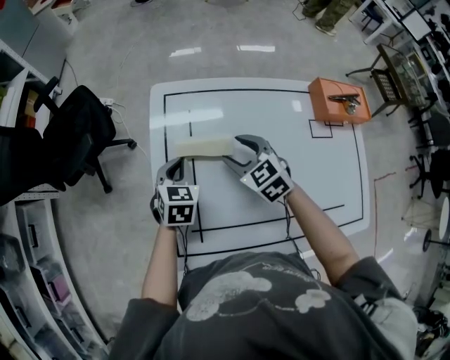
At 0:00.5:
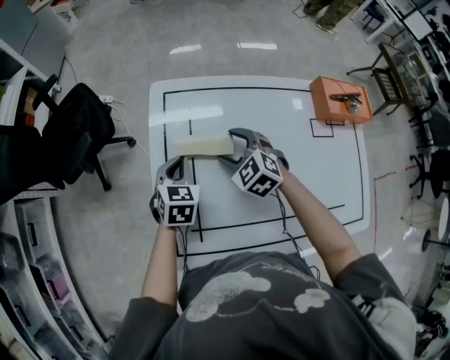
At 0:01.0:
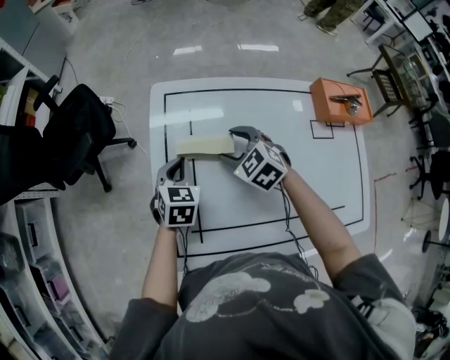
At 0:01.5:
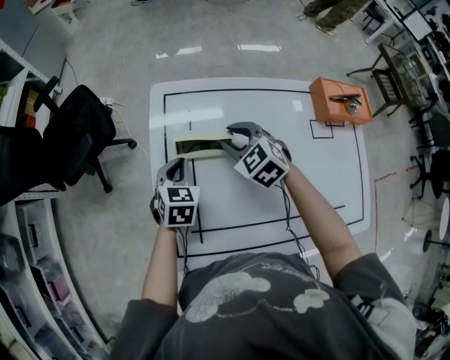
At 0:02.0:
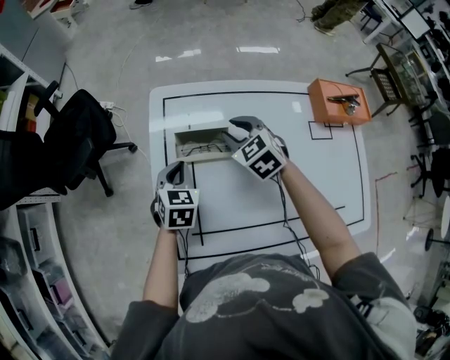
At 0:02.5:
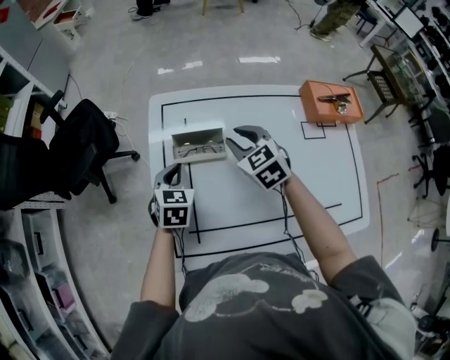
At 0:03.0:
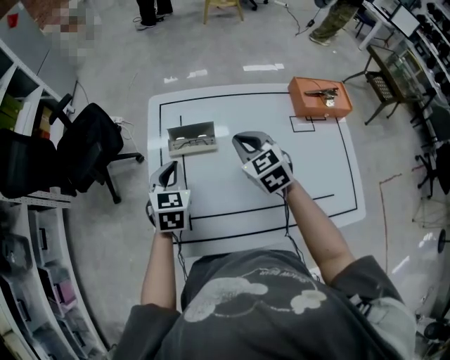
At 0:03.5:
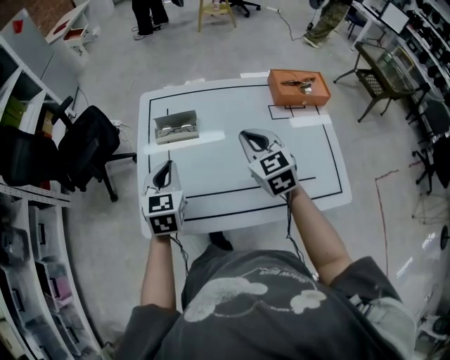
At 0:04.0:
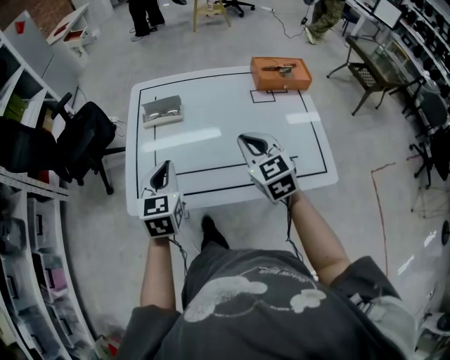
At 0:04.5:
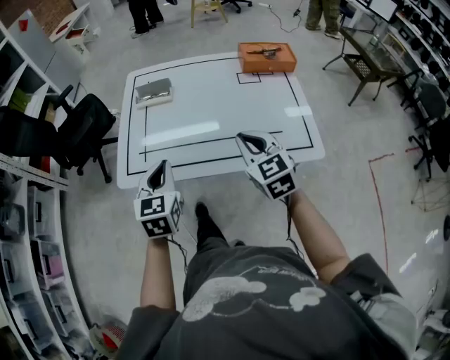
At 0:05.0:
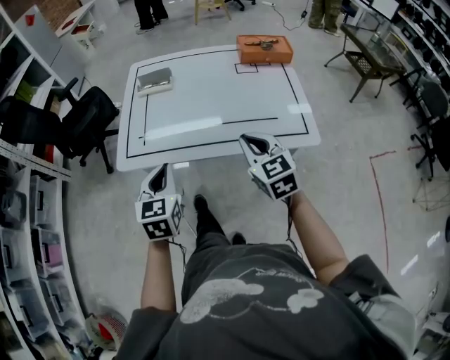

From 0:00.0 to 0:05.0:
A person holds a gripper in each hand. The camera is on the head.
From 0:00.0 to 0:02.5: The right gripper changes place by roughly 5 cm, and closes.
From 0:02.5 to 0:05.0: Both grippers are carried backward, roughly 50 cm. The right gripper closes its fingers.

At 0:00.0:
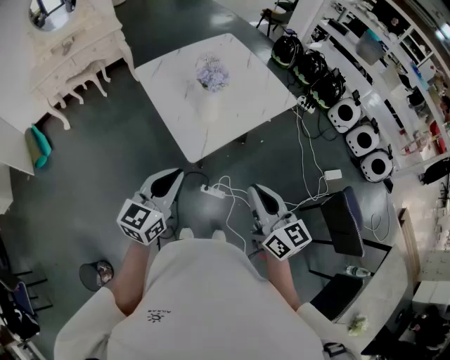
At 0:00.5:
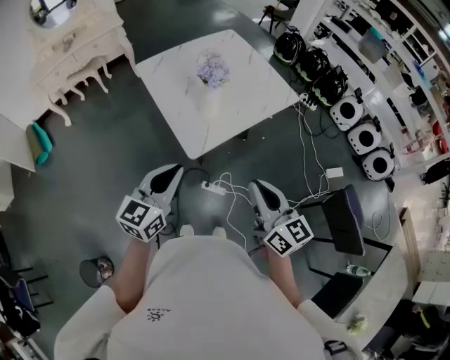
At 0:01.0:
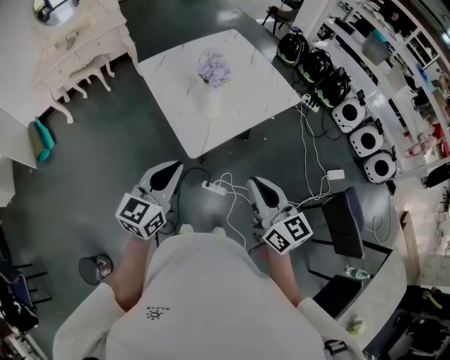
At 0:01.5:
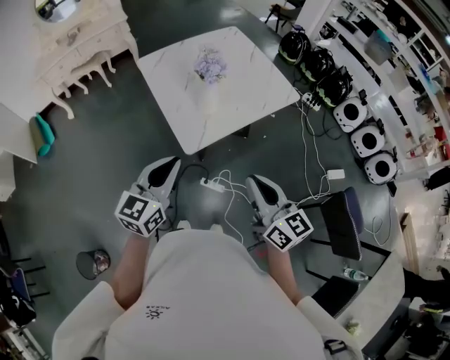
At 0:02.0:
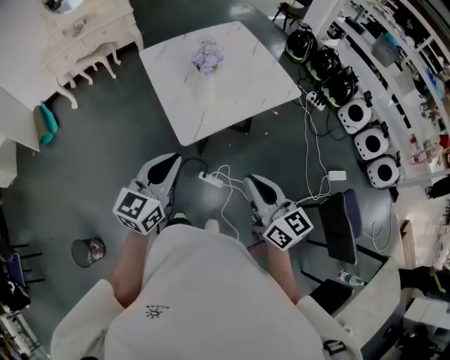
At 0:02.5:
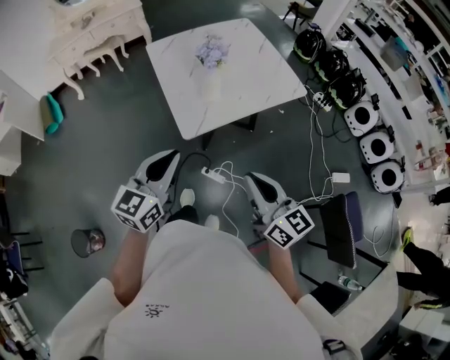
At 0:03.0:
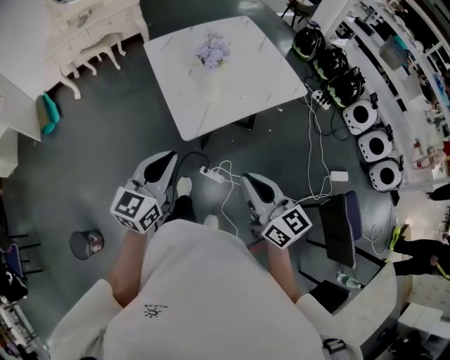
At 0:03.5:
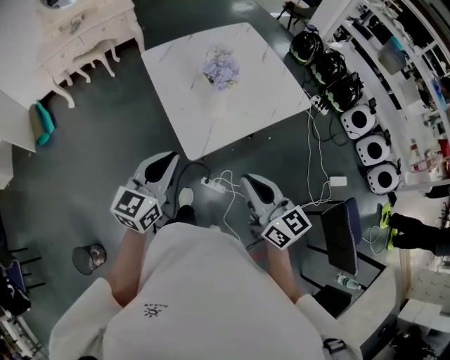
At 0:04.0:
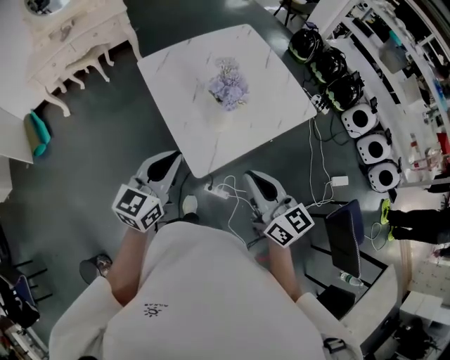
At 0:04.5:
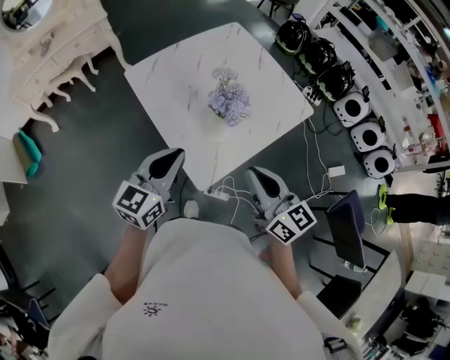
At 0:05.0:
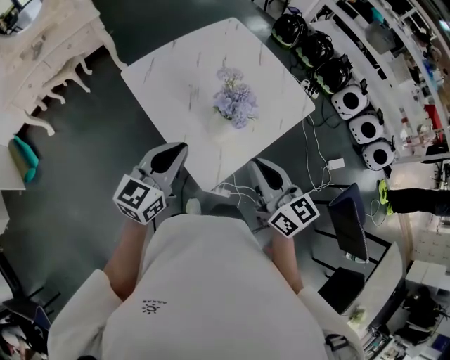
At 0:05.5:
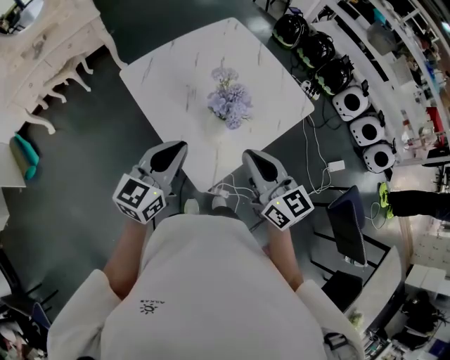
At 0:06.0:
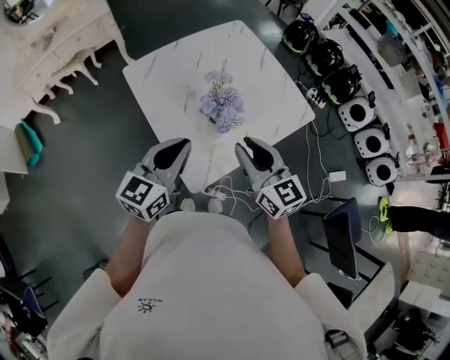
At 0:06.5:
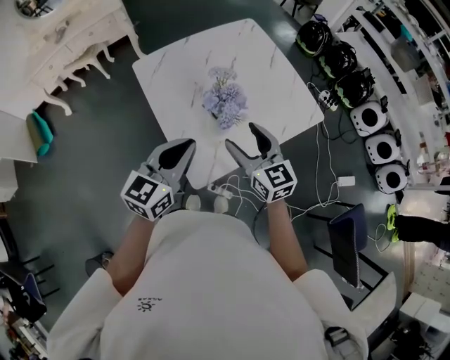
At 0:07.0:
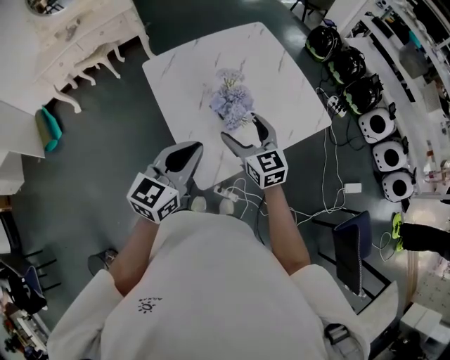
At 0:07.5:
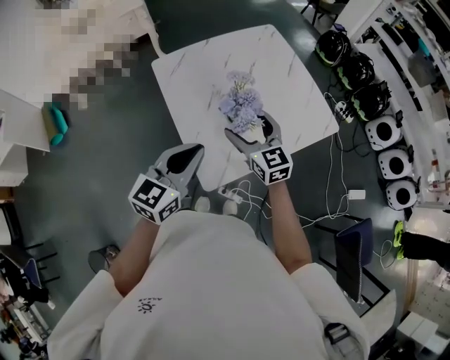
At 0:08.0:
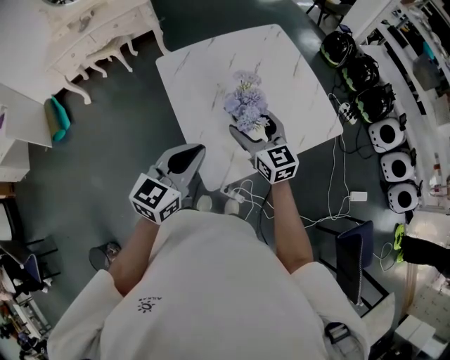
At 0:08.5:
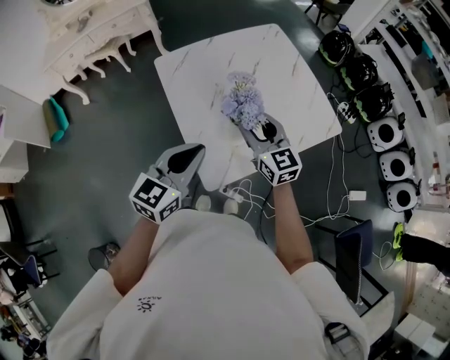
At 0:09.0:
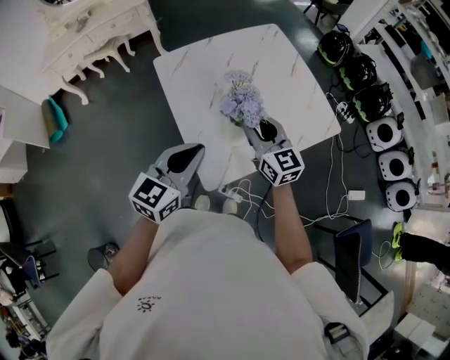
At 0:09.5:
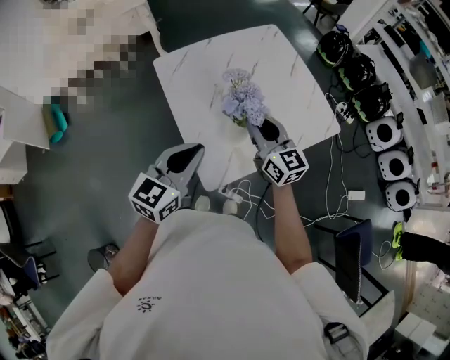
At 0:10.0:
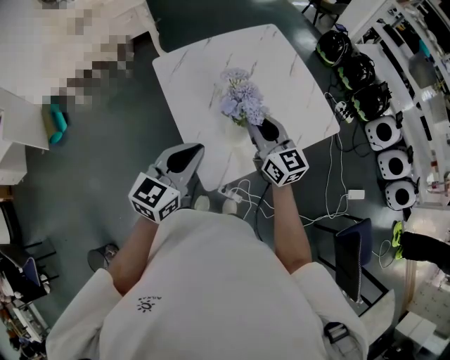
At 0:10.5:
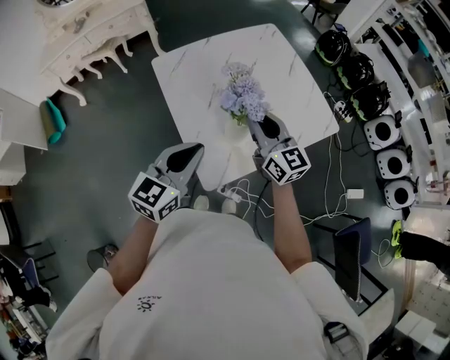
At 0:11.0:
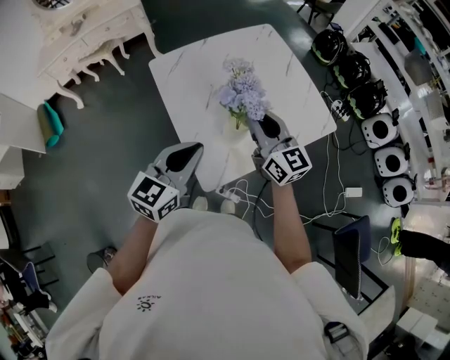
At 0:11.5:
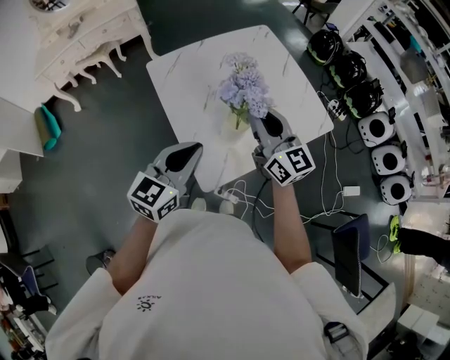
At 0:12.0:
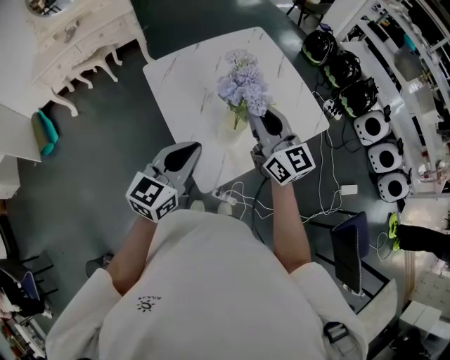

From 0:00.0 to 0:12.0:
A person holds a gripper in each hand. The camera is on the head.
From 0:00.0 to 0:02.0: Both grippers travel together to the right, roughly 5 cm.
From 0:02.0 to 0:04.0: The two grippers go some 20 cm forward and to the left.
From 0:04.0 to 0:06.0: The two grippers go about 15 cm forward.
From 0:06.0 to 0:08.0: The right gripper goes roughly 10 cm forward and downward, and opens its fingers.
From 0:08.0 to 0:10.0: The right gripper closes its fingers.
From 0:10.0 to 0:12.0: The right gripper heads upward, covering approximately 10 cm.

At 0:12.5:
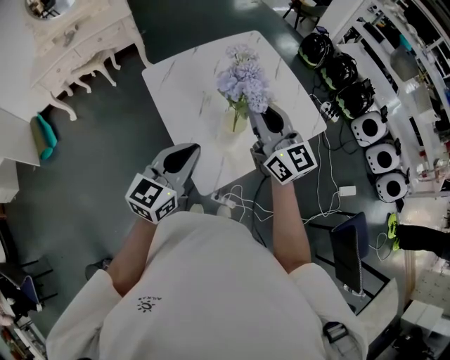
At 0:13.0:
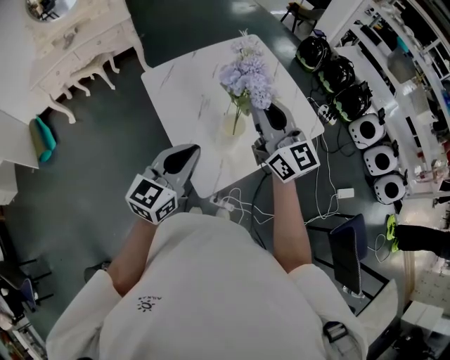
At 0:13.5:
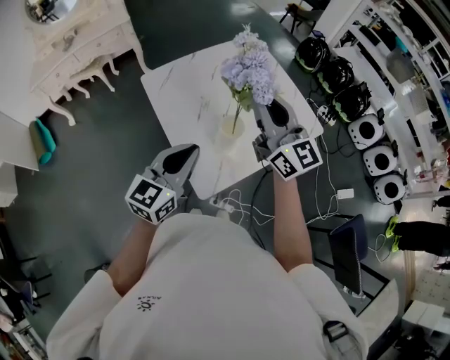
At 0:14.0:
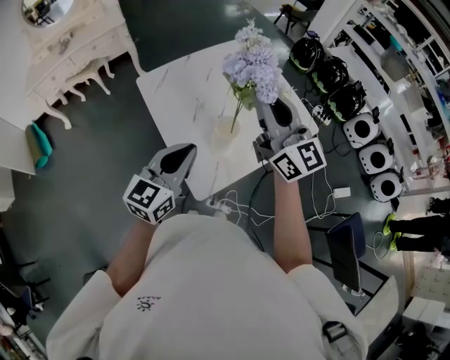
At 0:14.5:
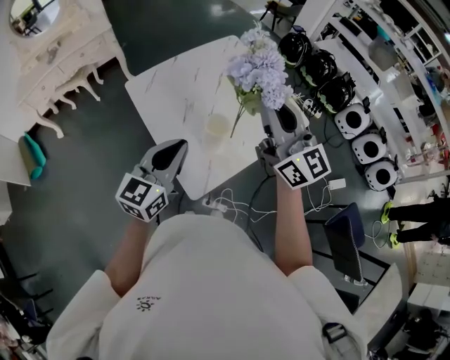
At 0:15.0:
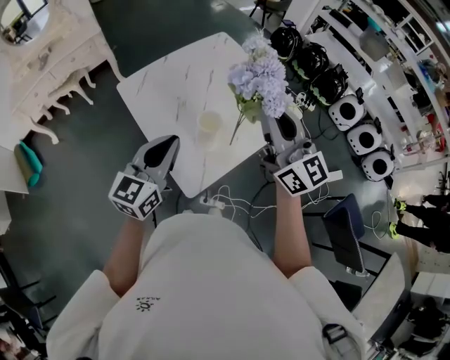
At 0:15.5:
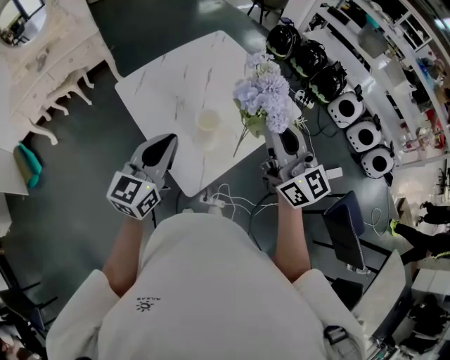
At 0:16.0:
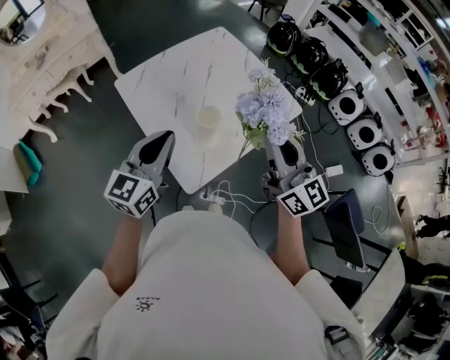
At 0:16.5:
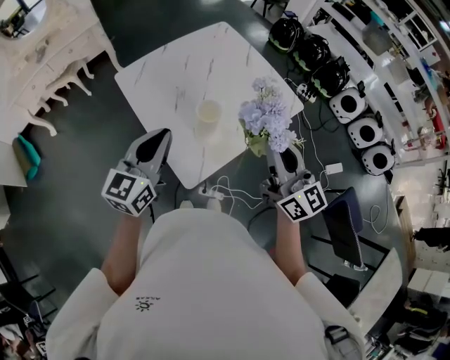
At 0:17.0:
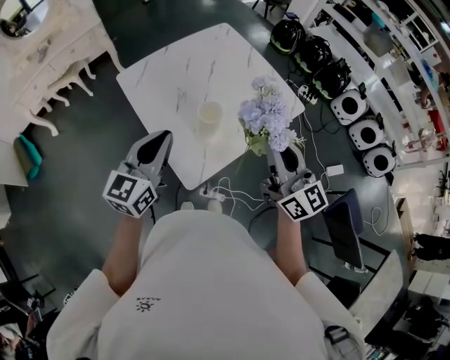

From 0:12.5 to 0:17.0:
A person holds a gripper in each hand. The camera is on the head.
From 0:12.5 to 0:14.5: The right gripper heads upward, covering approximately 10 cm.
From 0:14.5 to 0:17.0: The right gripper shifts some 15 cm downward, backward and to the right.

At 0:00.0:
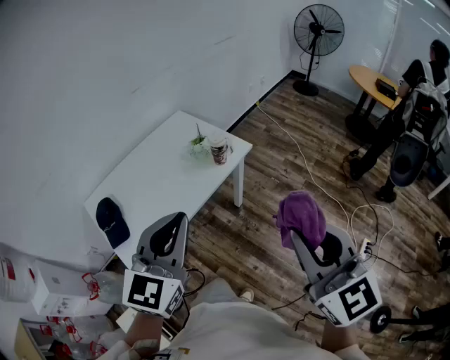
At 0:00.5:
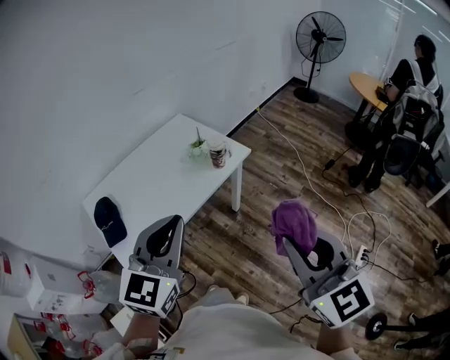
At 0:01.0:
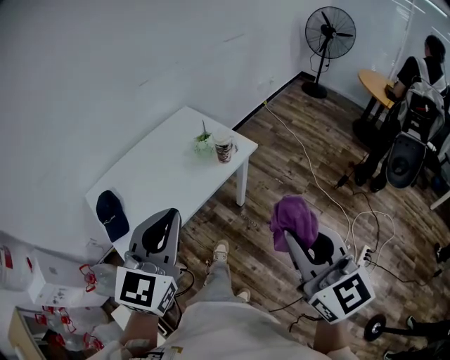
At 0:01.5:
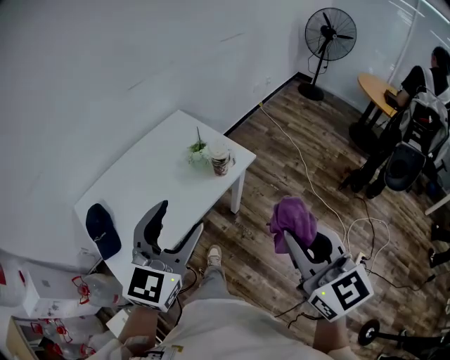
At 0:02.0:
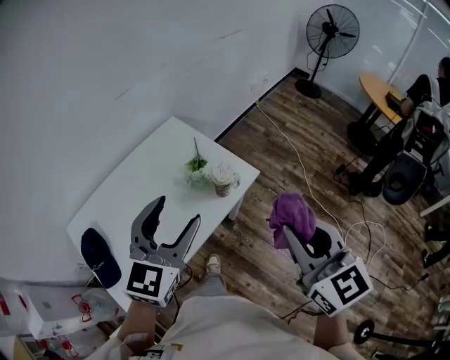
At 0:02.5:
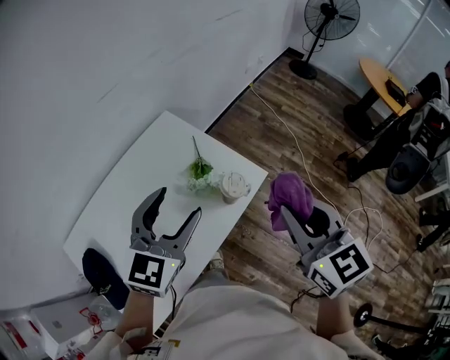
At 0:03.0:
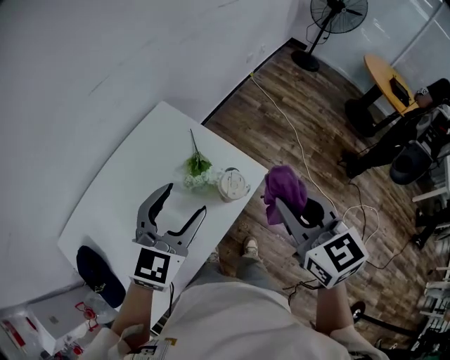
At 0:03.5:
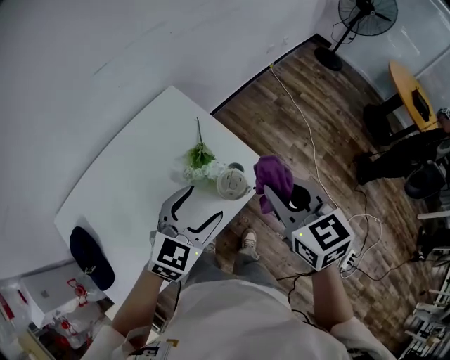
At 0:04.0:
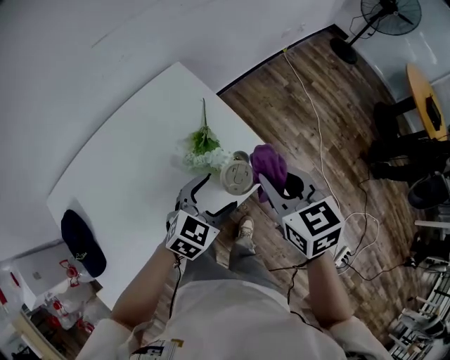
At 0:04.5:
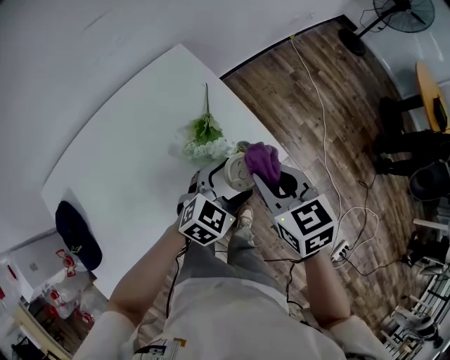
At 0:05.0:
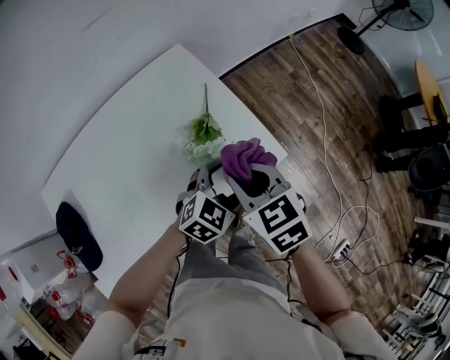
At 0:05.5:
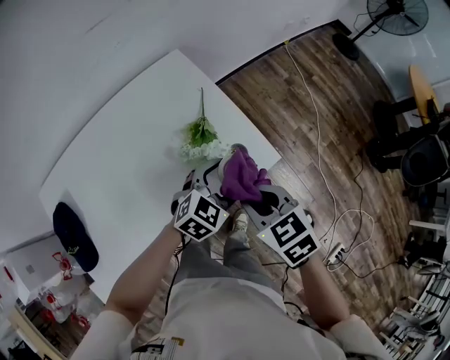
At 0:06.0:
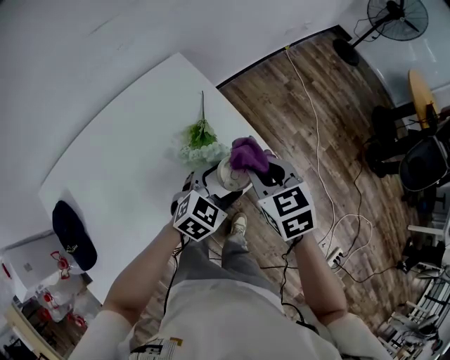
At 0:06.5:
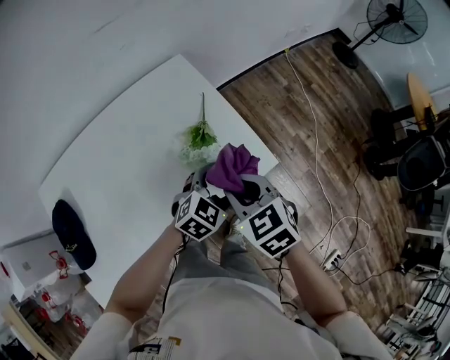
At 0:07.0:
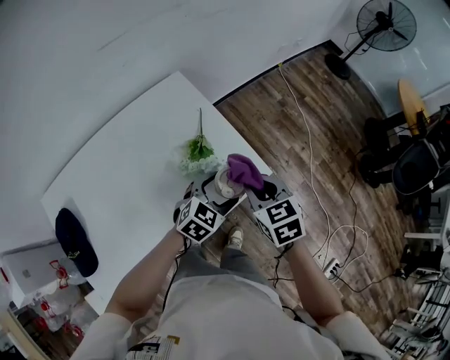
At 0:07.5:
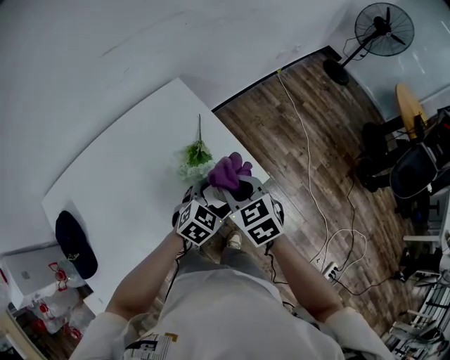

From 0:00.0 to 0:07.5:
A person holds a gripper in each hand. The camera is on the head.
From 0:00.0 to 0:02.0: The two grippers go roughly 25 cm forward. The left gripper opens its fingers.
From 0:02.0 to 0:04.0: The right gripper travels forward and downward by about 35 cm, and swivels about 30 degrees, while the left gripper moves downward and forward, approximately 35 cm, and changes its angle by approximately 30 degrees.
From 0:04.0 to 0:05.5: The left gripper ends up approximately 5 cm from where it was, while the right gripper goes approximately 10 cm downward and backward, and changes its angle by about 20 degrees.
From 0:05.5 to 0:07.5: The right gripper moves forward and backward over some 10 cm, changing direction 2 times.
